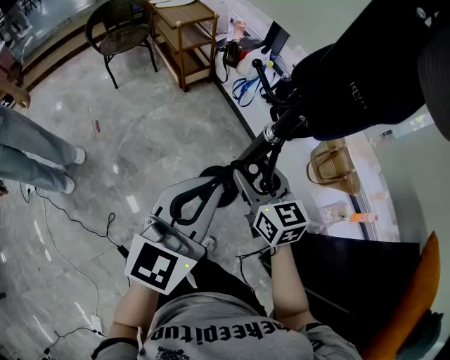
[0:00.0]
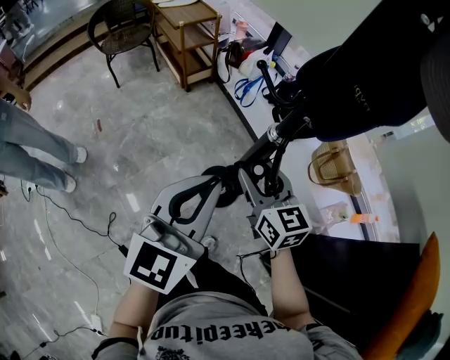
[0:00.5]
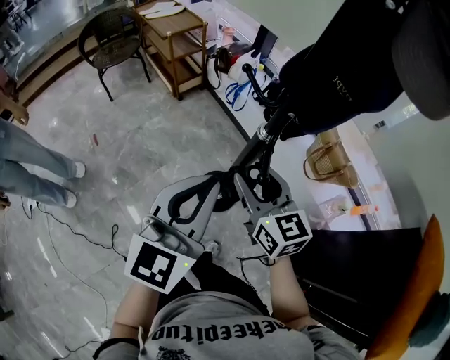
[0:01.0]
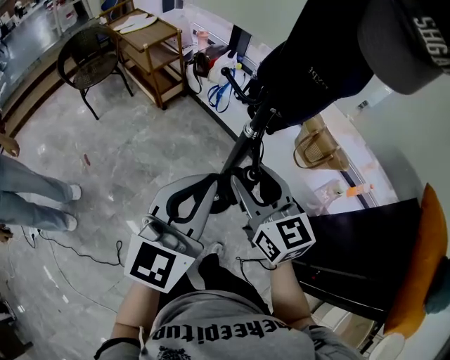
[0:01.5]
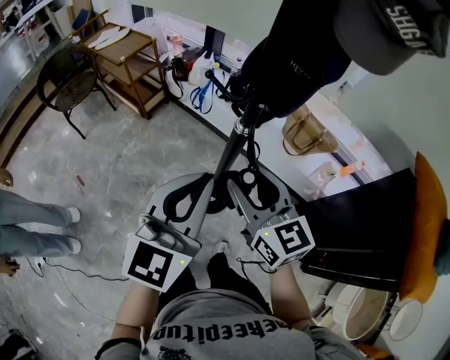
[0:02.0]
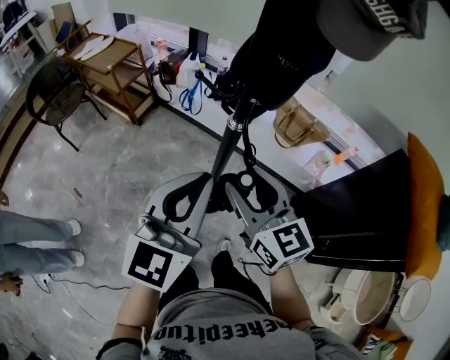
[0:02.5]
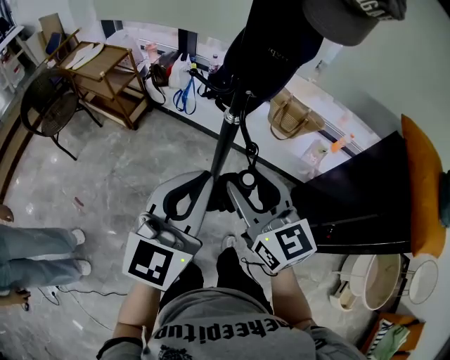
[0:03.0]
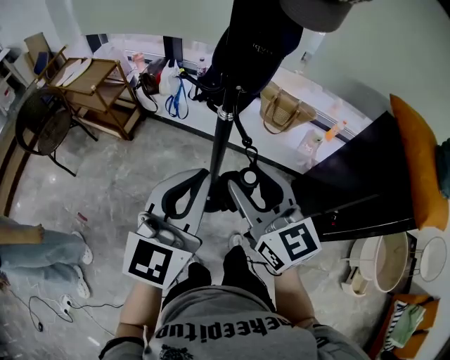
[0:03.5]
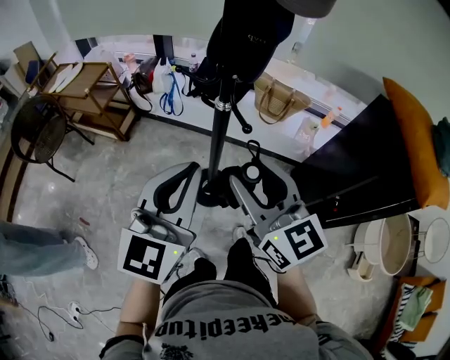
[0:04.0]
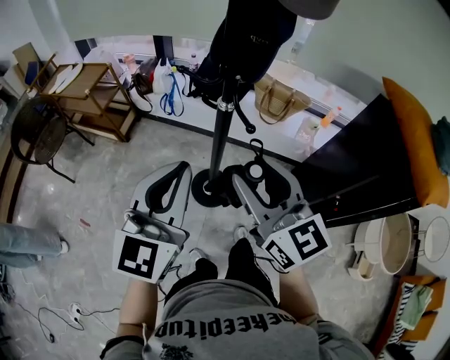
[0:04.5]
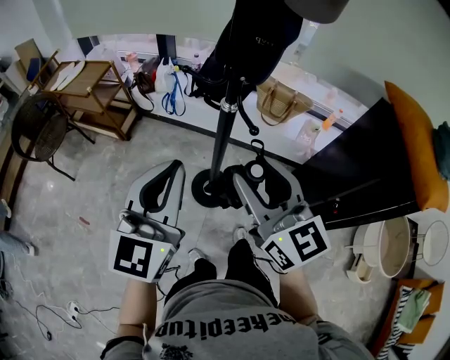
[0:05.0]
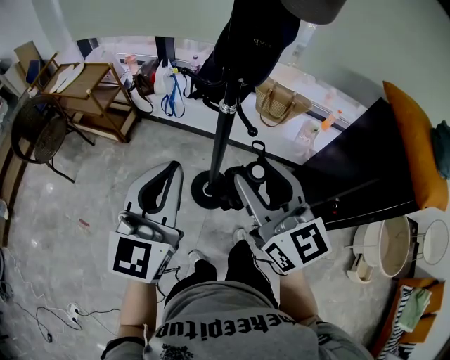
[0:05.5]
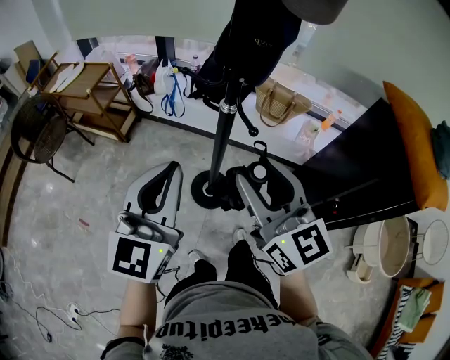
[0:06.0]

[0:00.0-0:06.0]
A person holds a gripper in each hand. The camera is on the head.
0:00.0 to 0:02.0: The left gripper goes some 5 cm upward; the right gripper goes approximately 15 cm upward and backward.
0:02.0 to 0:04.0: The right gripper goes roughly 10 cm backward and upward, while the left gripper changes place by approximately 5 cm.
0:04.0 to 0:06.0: The grippers stay close to where they were, moving slightly.

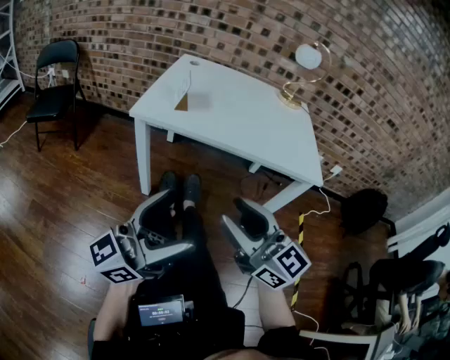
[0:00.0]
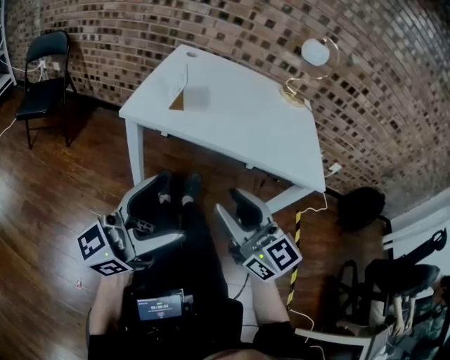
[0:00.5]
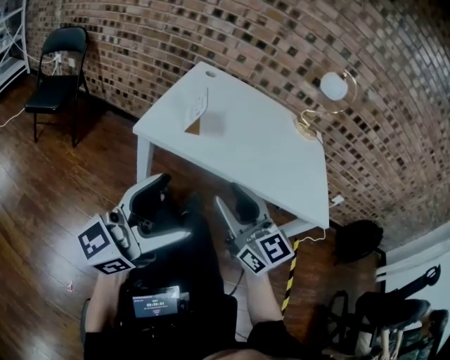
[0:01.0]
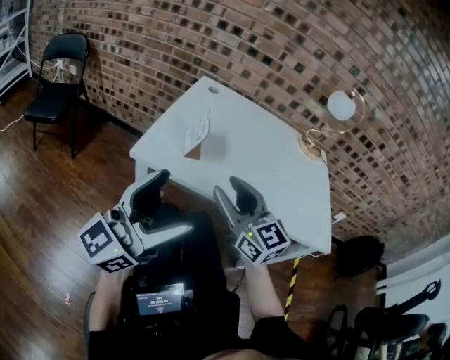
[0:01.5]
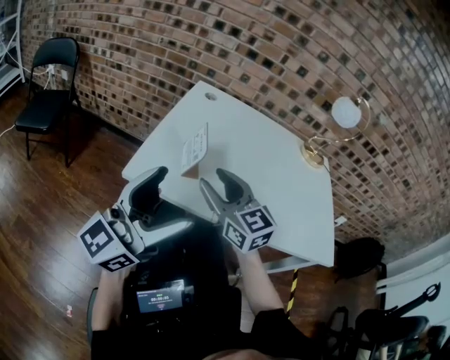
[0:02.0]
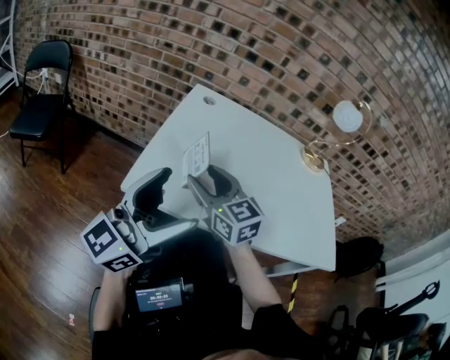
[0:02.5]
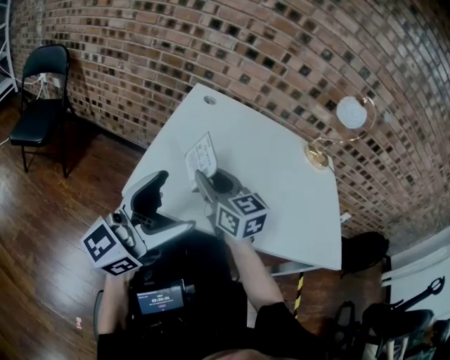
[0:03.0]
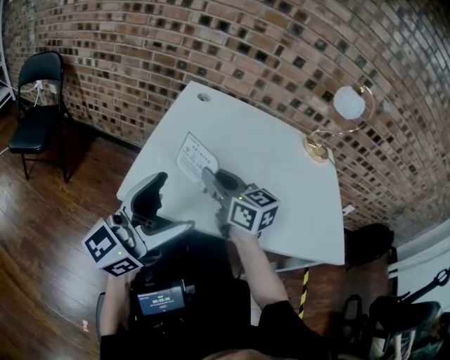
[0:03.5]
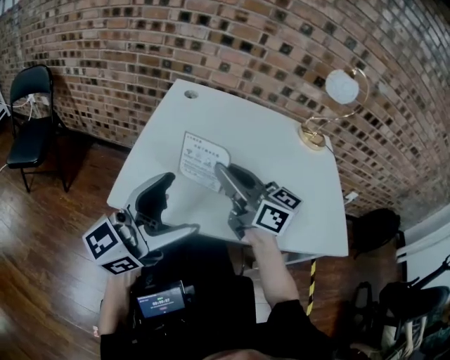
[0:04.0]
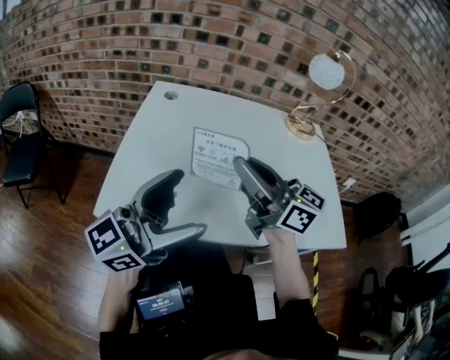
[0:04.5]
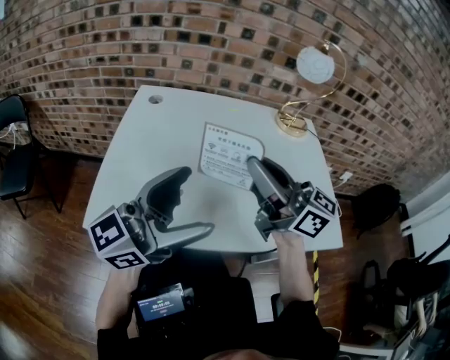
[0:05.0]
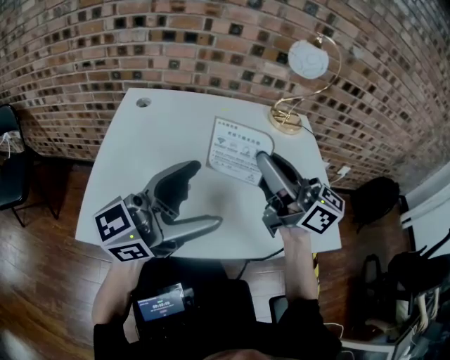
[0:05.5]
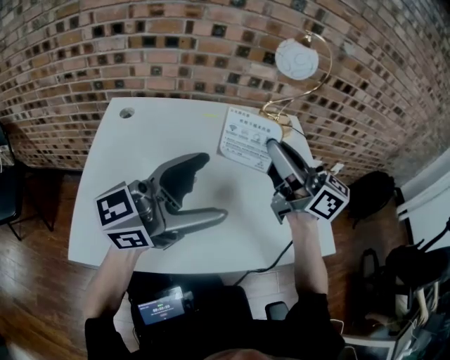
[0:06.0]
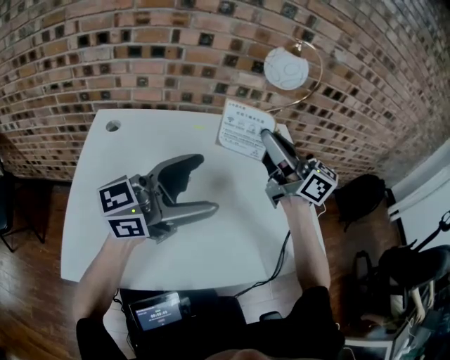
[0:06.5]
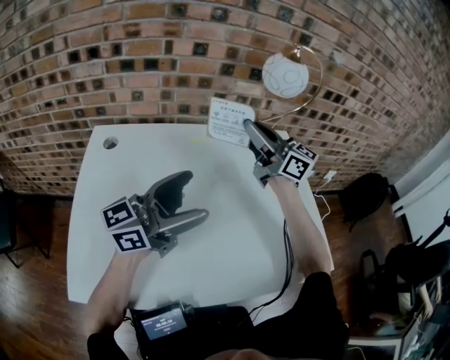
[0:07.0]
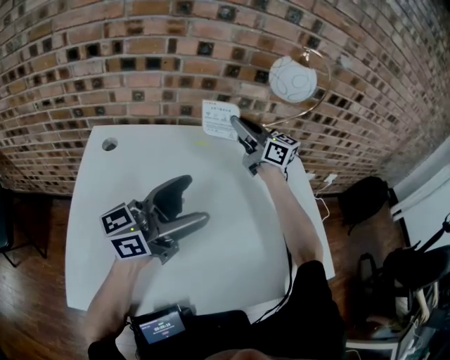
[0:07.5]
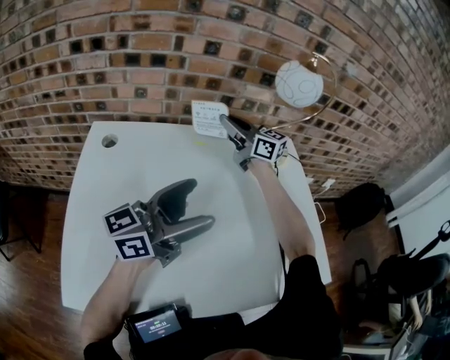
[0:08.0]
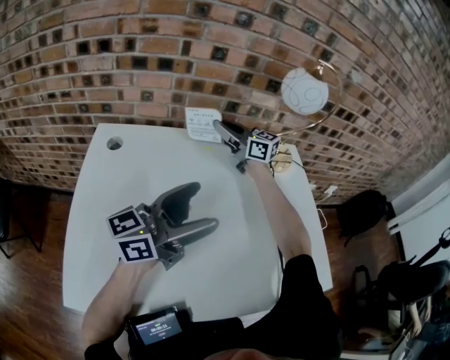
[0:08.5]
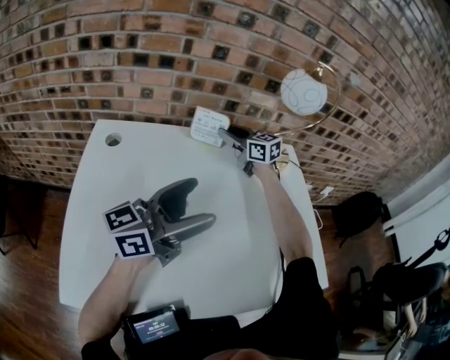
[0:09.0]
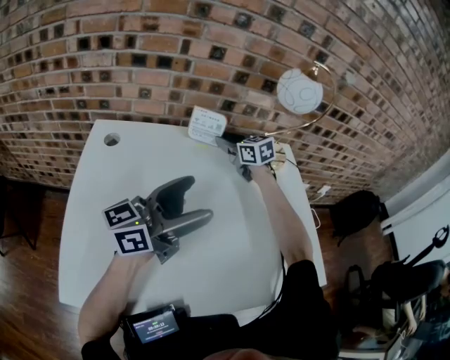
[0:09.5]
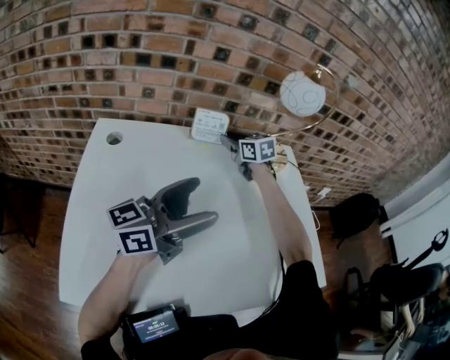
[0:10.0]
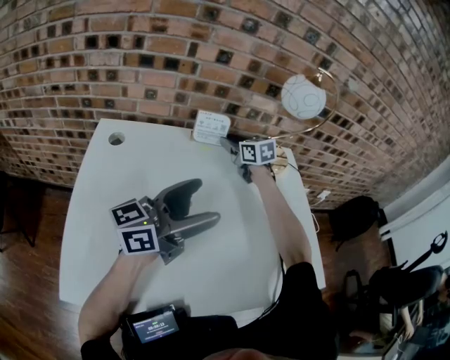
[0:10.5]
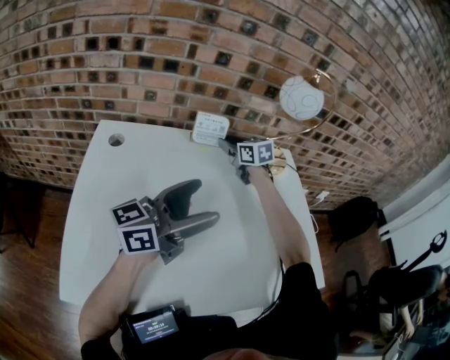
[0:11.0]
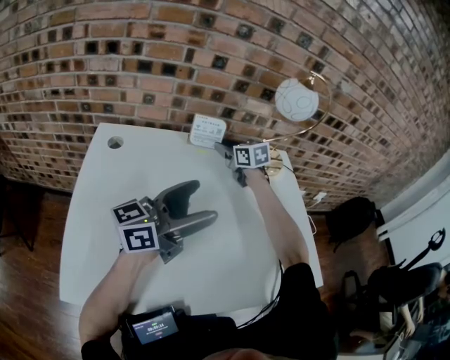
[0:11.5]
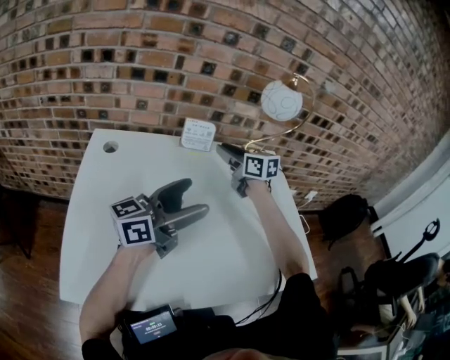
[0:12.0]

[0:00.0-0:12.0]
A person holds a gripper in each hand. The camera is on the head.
0:00.0 to 0:02.0: Both grippers travel together forward, some 30 cm.
0:02.0 to 0:04.0: Both grippers travel together forward, roughly 5 cm. The right gripper swivels roughly 30 degrees, and closes its fingers.
0:04.0 to 0:06.0: The right gripper heads to the right, forward and upward, covering roughly 25 cm. The left gripper goes approximately 20 cm to the right and forward, and swivels roughly 30 degrees.
0:06.0 to 0:08.0: The left gripper travels forward and downward by about 15 cm; the right gripper moves forward, about 30 cm.
0:08.0 to 0:10.0: The right gripper moves downward, some 10 cm, tilts its fingers some 30 degrees downward, and opens its fingers.
0:10.0 to 0:12.0: The right gripper is displaced backward and upward by roughly 10 cm.

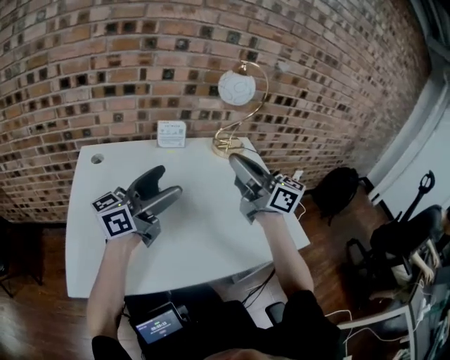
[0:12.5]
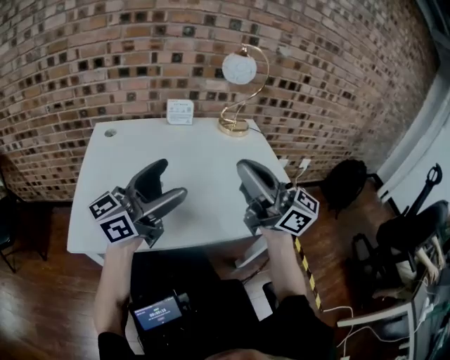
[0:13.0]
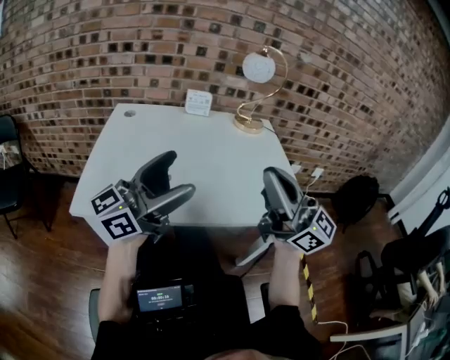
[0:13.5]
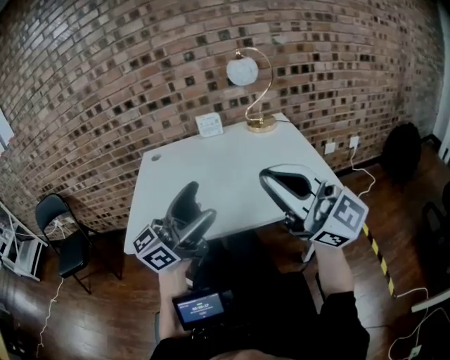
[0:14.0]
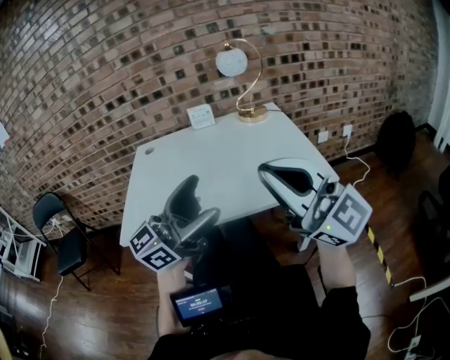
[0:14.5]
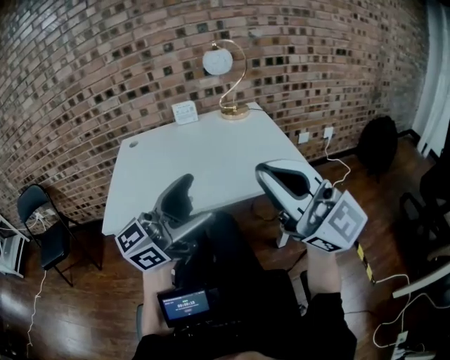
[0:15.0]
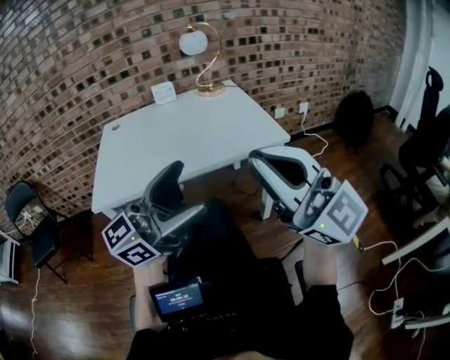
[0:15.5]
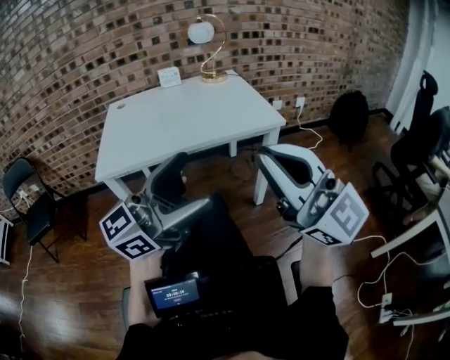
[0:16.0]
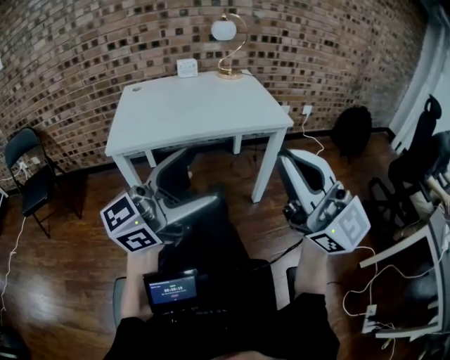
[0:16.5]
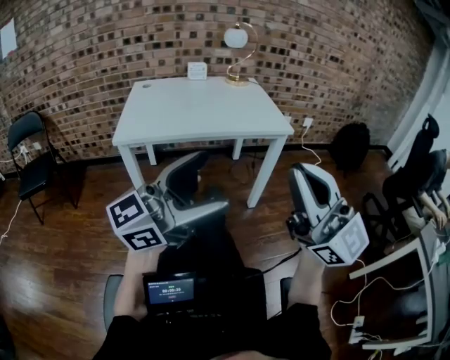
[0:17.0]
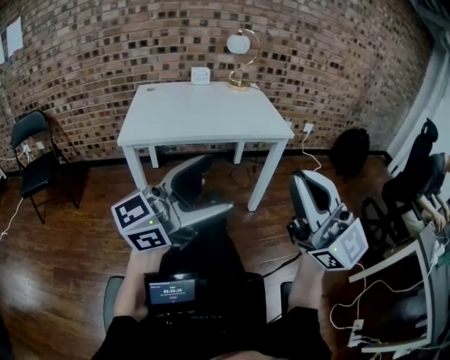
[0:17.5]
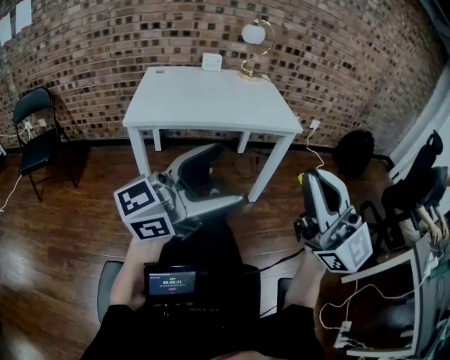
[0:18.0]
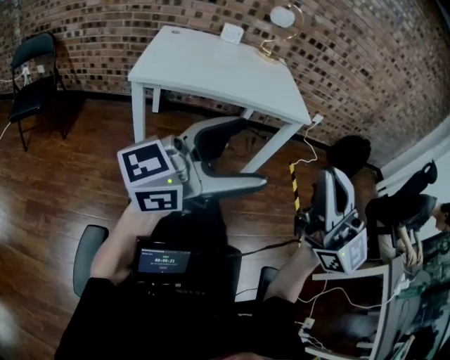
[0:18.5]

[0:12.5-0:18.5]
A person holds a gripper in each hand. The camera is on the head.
0:12.5 to 0:14.5: The two grippers go approximately 30 cm backward. The right gripper rotates about 30 degrees.
0:14.5 to 0:16.5: Both grippers move backward, about 30 cm.
0:16.5 to 0:18.5: The right gripper is displaced backward by approximately 5 cm.

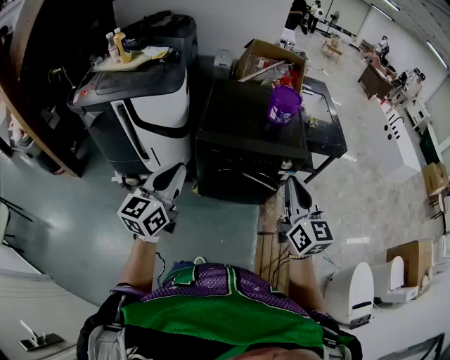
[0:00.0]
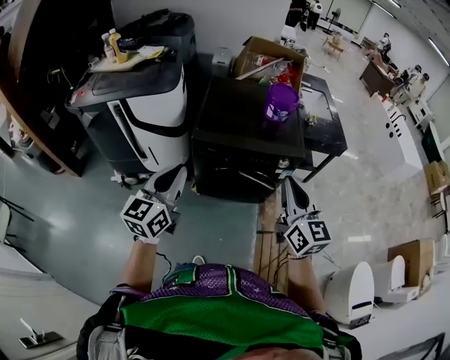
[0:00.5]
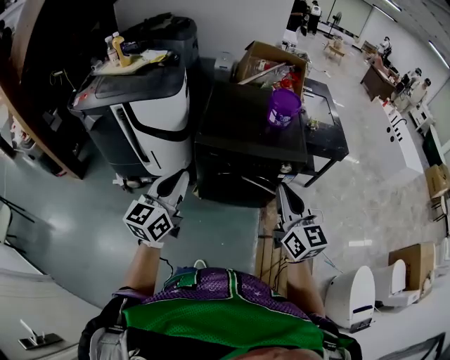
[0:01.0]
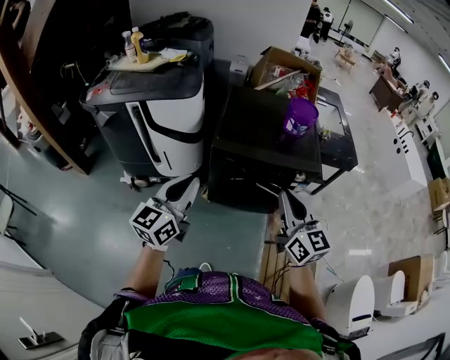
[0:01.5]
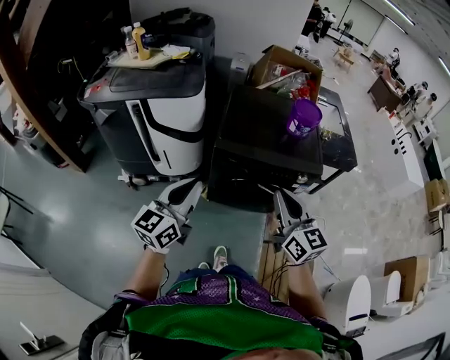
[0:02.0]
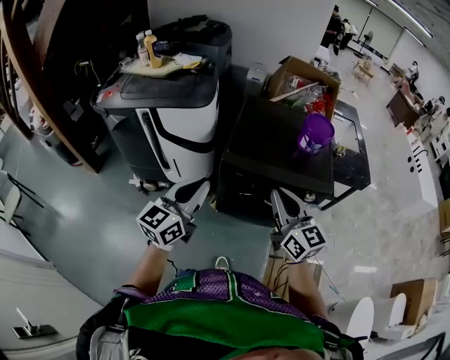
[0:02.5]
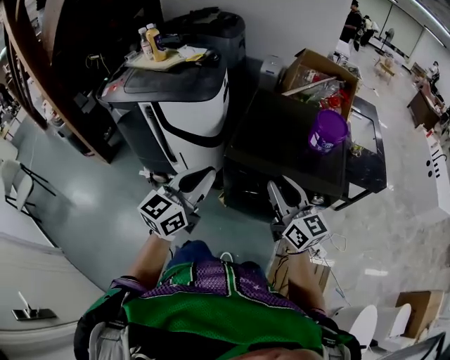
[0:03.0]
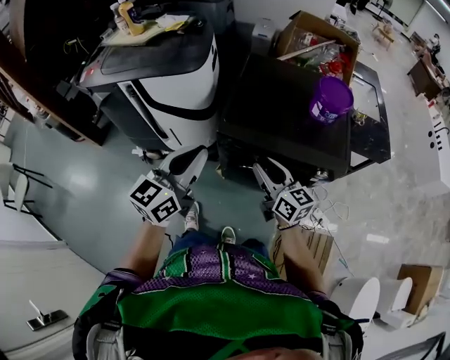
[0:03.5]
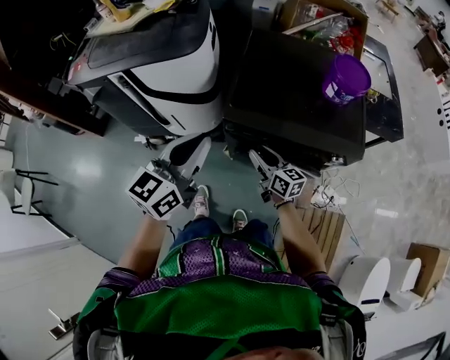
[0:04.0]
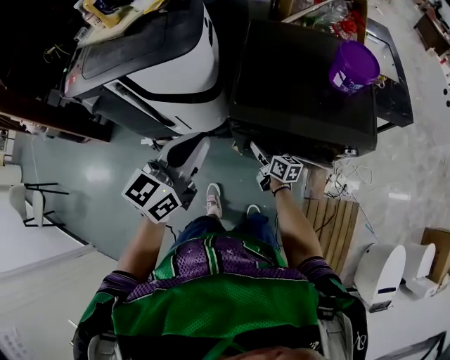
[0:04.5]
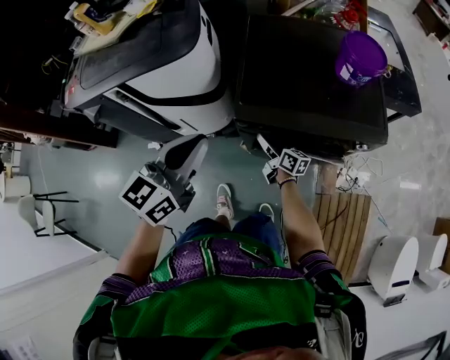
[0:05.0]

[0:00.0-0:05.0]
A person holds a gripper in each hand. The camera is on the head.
0:00.0 to 0:02.5: The left gripper shifts some 5 cm forward; the right gripper moves to the left and forward, some 15 cm, and rotates roughly 20 degrees.
0:02.5 to 0:05.0: The left gripper heads forward and downward, covering some 20 cm. The right gripper travels downward and forward by approximately 50 cm, rotates around the line of its fingers by about 50 degrees, clockwise from behind, and opens.
